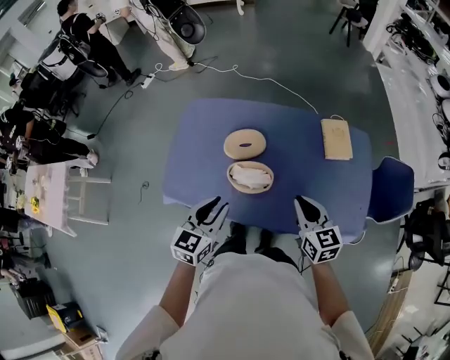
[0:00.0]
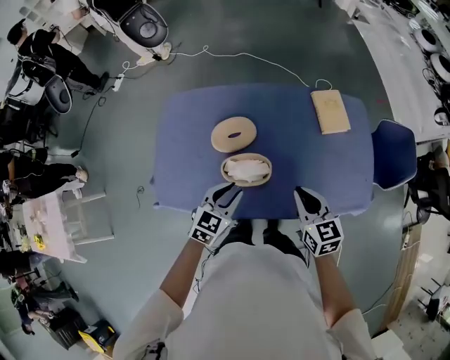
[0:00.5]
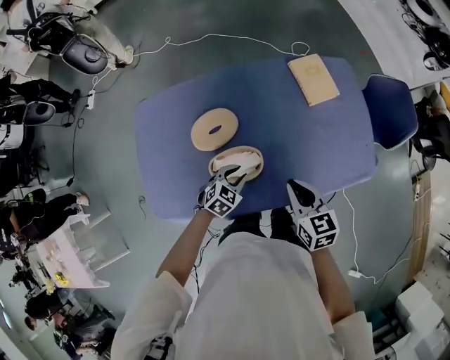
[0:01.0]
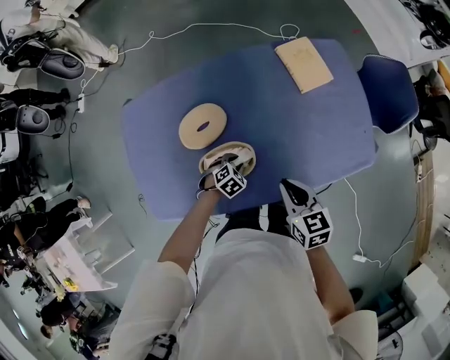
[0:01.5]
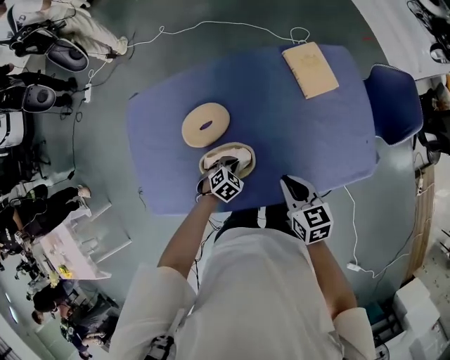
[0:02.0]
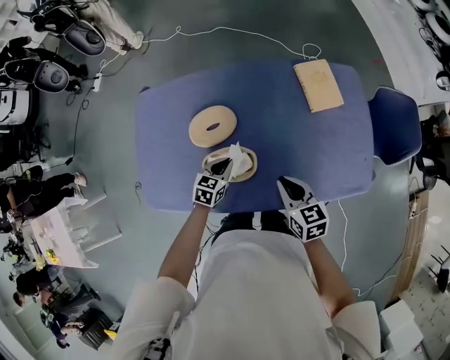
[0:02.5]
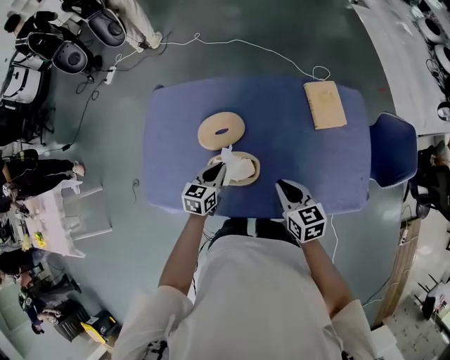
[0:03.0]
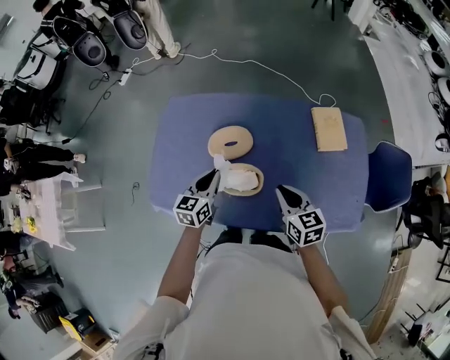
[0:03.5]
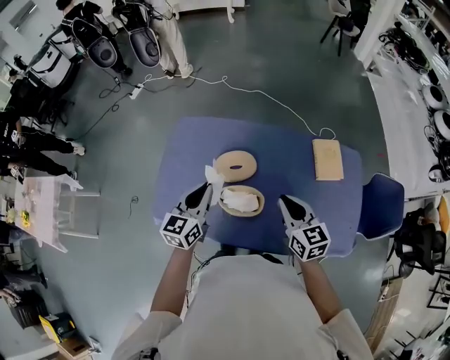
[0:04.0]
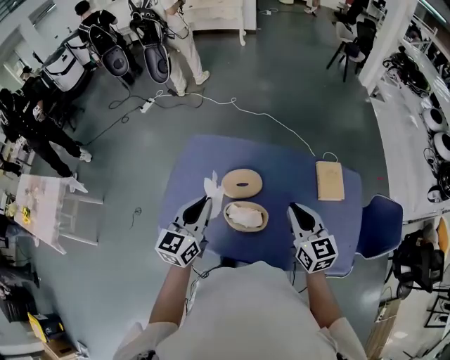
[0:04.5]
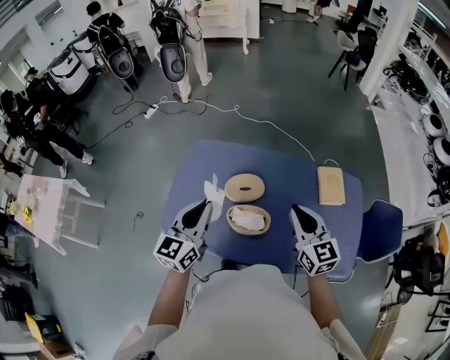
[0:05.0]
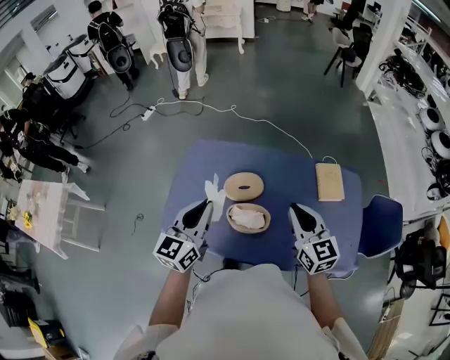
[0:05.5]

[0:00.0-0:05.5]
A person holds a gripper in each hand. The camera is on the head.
0:00.0 to 0:02.0: The left gripper is displaced downward by roughly 35 cm, tips its fingers downward by approximately 50 degrees, and closes; the right gripper is displaced downward by some 15 cm, and changes its angle by approximately 20 degrees.
0:02.0 to 0:03.5: The right gripper moves upward and to the left, approximately 10 cm, while the left gripper is displaced upward and to the left by roughly 25 cm, and angles its fingers upward, by roughly 40 degrees.
0:03.5 to 0:05.5: The grippers both shift upward by roughly 20 cm. The left gripper swivels approximately 20 degrees. Meanwhile the right gripper rotates some 20 degrees.

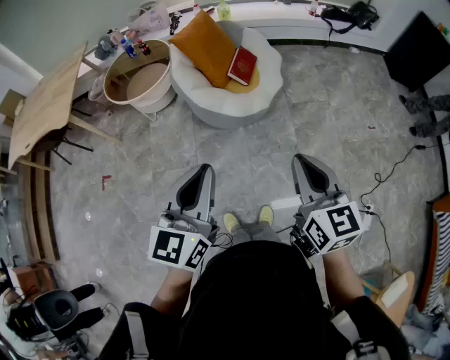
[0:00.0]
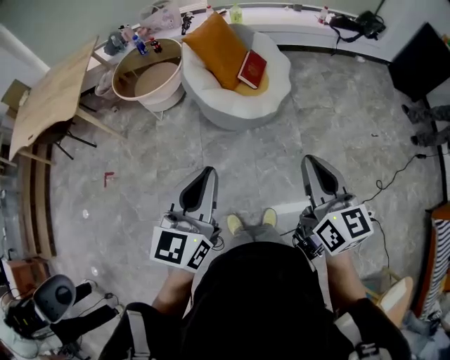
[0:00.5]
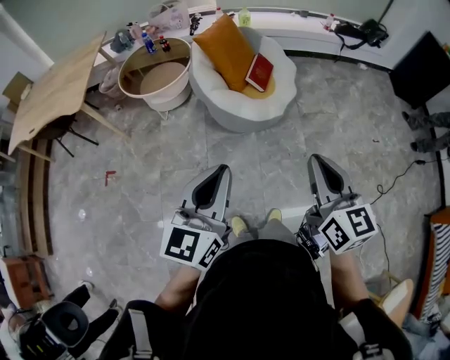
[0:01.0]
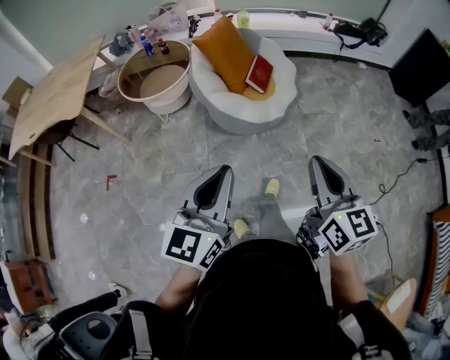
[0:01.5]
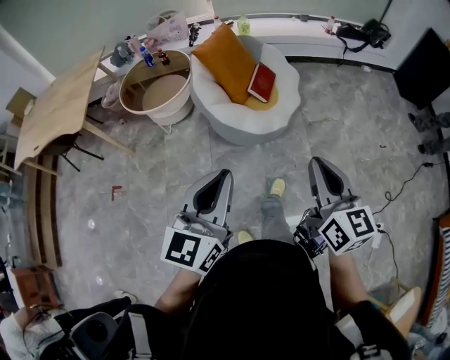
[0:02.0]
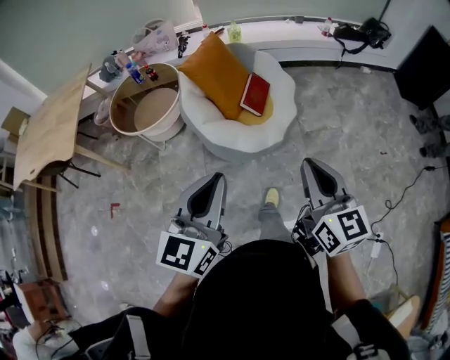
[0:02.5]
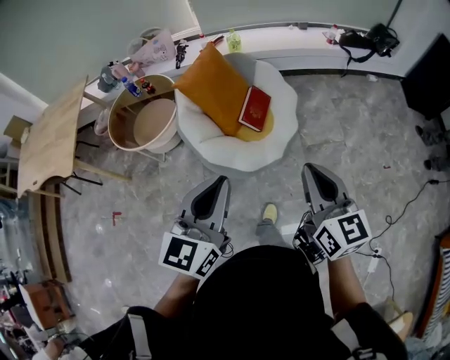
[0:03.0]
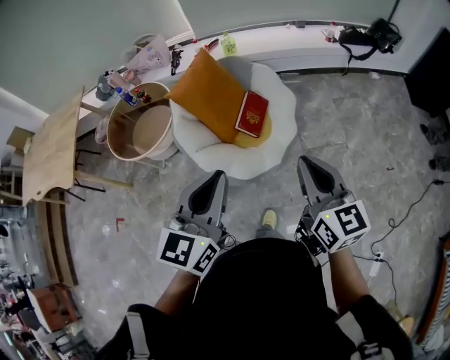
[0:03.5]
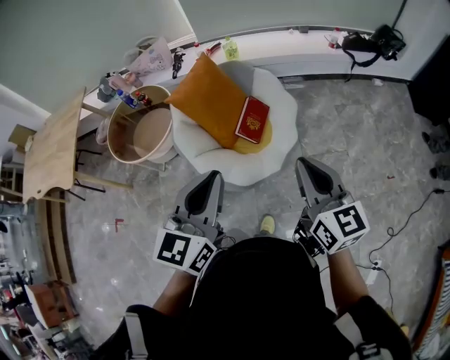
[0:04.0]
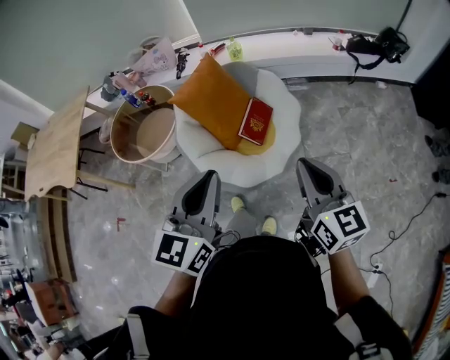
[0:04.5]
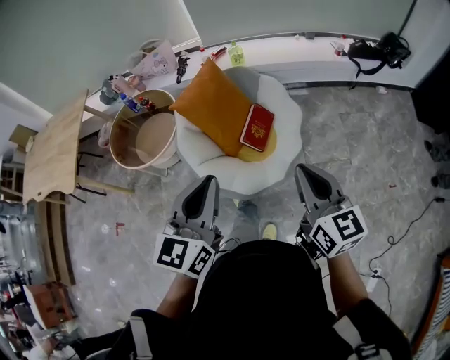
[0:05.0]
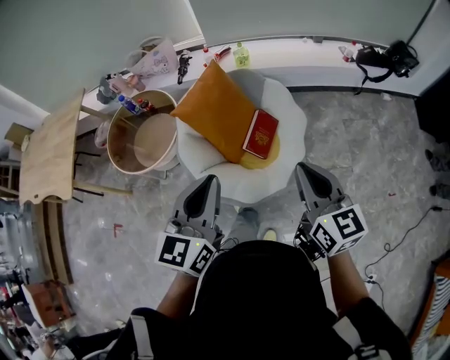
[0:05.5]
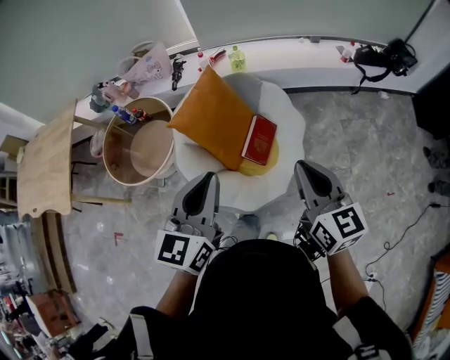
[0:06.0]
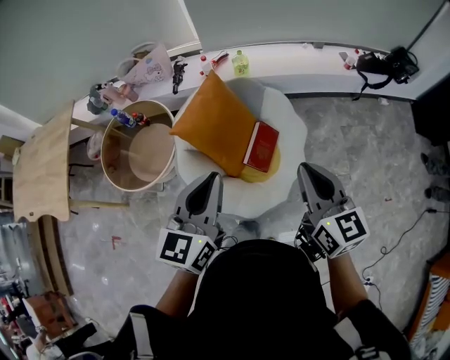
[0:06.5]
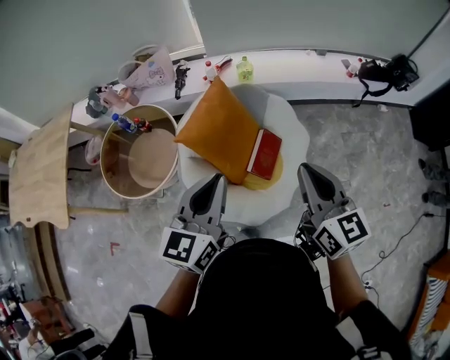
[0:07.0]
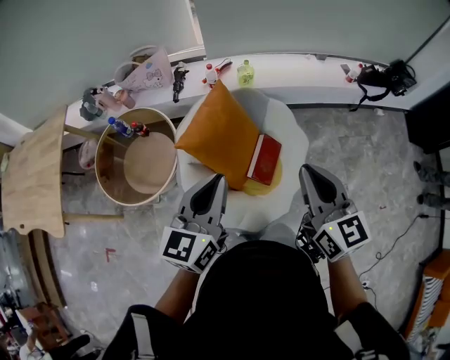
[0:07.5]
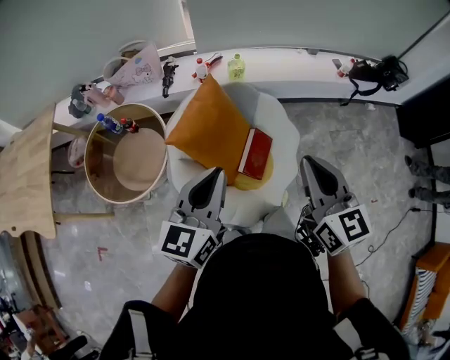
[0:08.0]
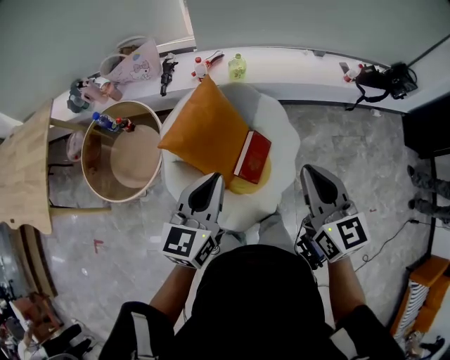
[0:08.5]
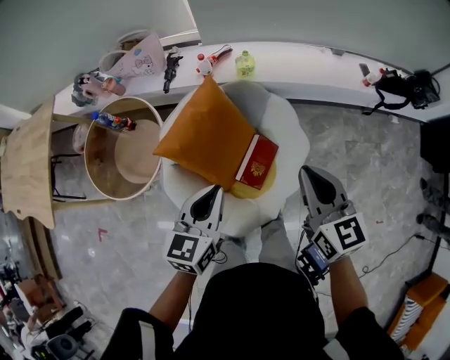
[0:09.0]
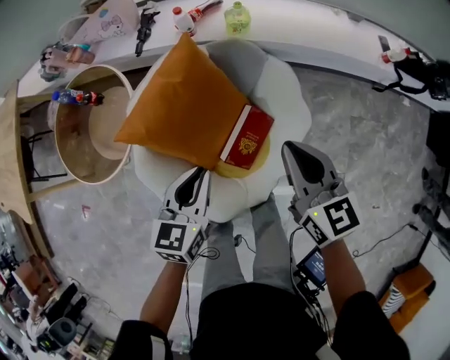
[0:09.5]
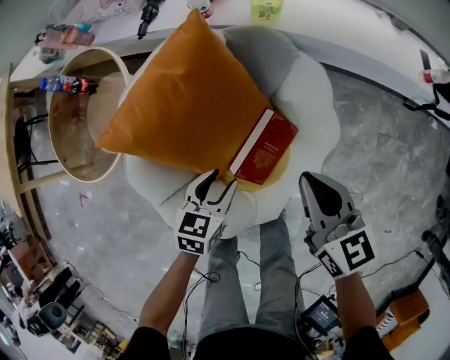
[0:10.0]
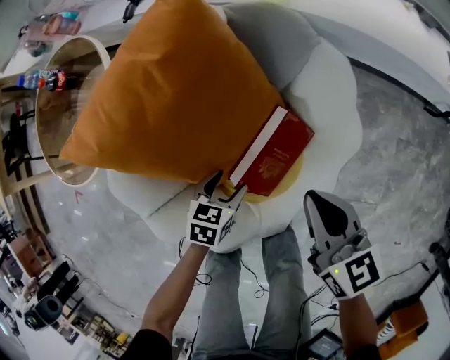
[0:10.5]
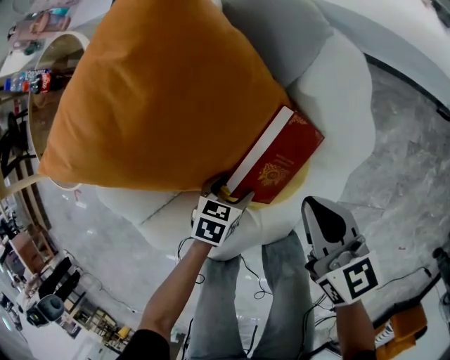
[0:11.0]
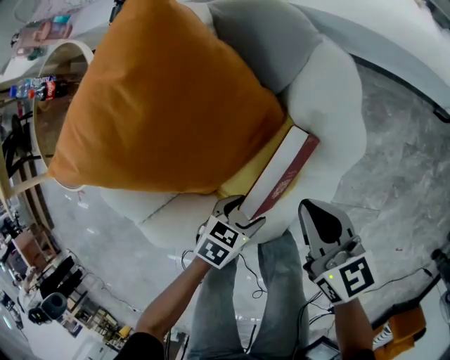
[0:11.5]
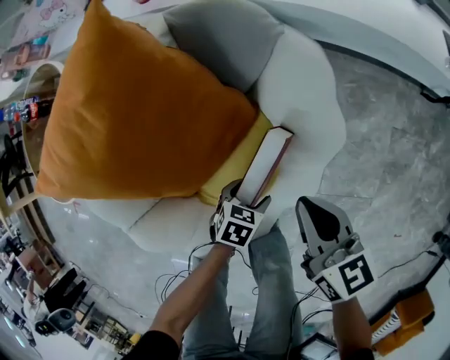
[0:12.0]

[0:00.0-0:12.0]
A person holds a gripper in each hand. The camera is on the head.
0:00.0 to 0:02.0: The grippers both shift to the left by approximately 5 cm.
0:02.0 to 0:04.0: The left gripper moves forward and to the right, about 40 cm, while the right gripper heads forward, covering roughly 35 cm.
0:04.0 to 0:06.0: Both grippers move forward, about 20 cm.
0:06.0 to 0:08.0: The two grippers go some 15 cm forward and to the left.
0:08.0 to 0:10.0: The right gripper heads downward and forward, covering approximately 40 cm, and changes its angle by some 30 degrees. Meanwhile the left gripper shifts some 50 cm downward, angles its fingers downward, by roughly 40 degrees, and opens up.
0:10.0 to 0:12.0: The right gripper heads downward and to the right, covering some 15 cm, while the left gripper goes up and down, some 25 cm each way, reversing 2 times, rotates some 30 degrees, and opens up.

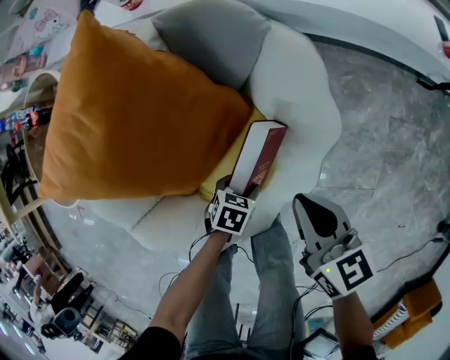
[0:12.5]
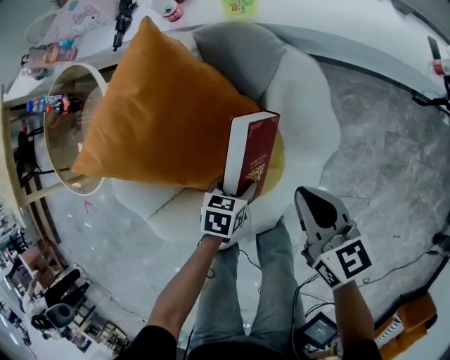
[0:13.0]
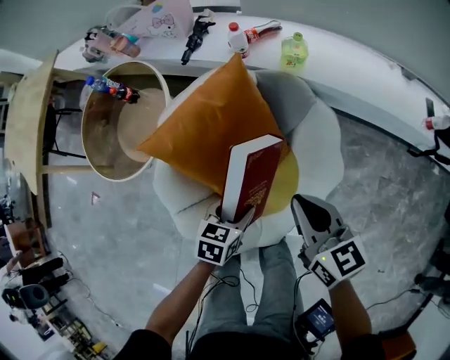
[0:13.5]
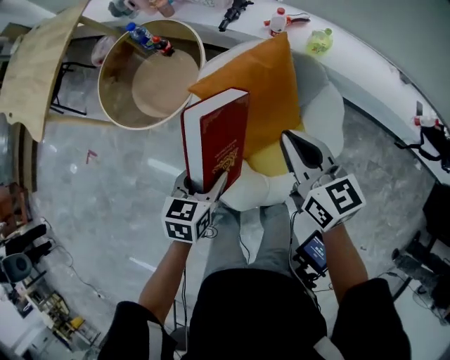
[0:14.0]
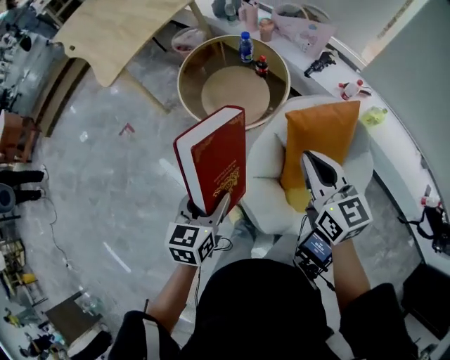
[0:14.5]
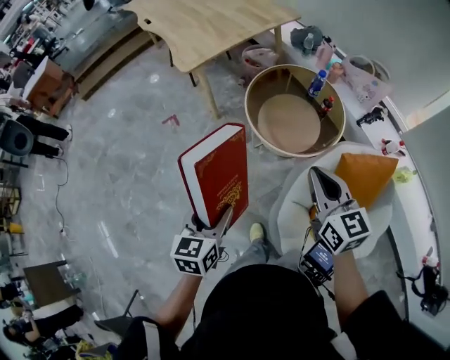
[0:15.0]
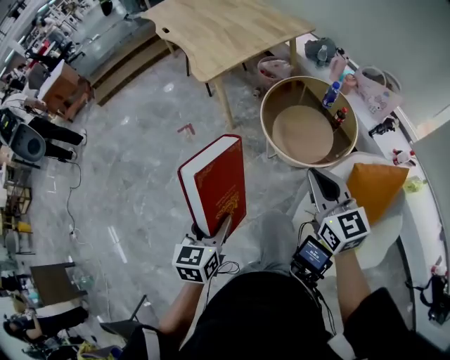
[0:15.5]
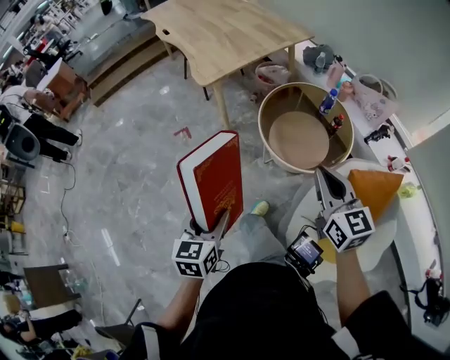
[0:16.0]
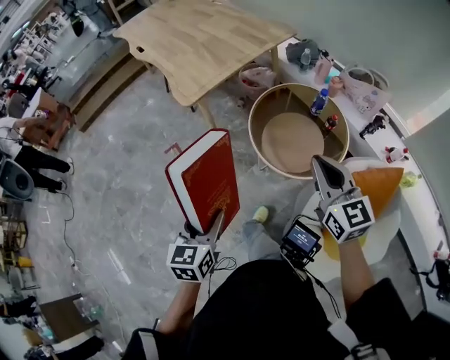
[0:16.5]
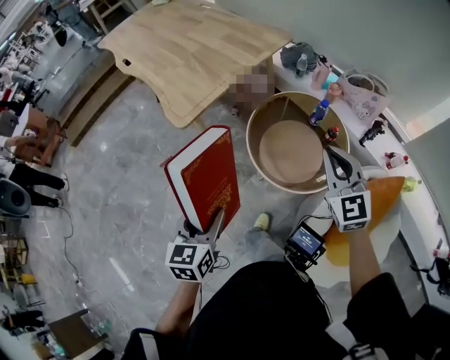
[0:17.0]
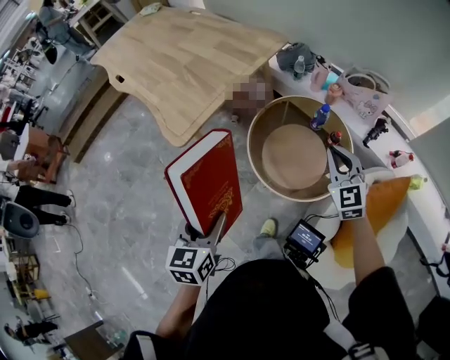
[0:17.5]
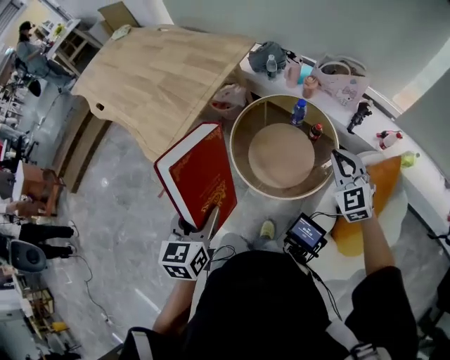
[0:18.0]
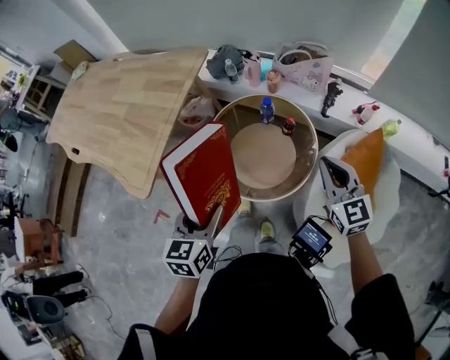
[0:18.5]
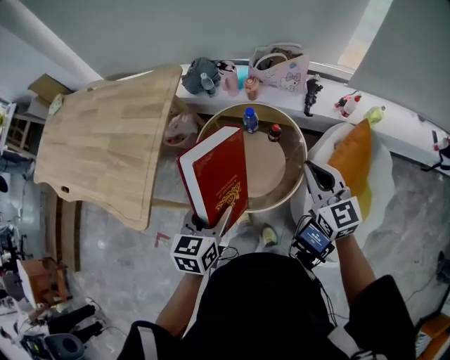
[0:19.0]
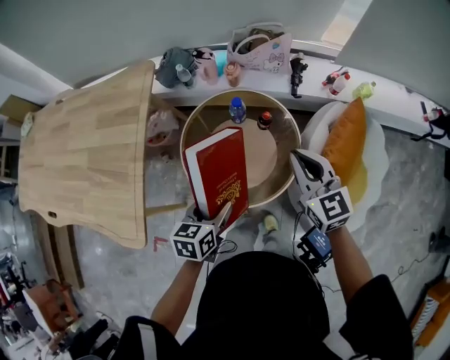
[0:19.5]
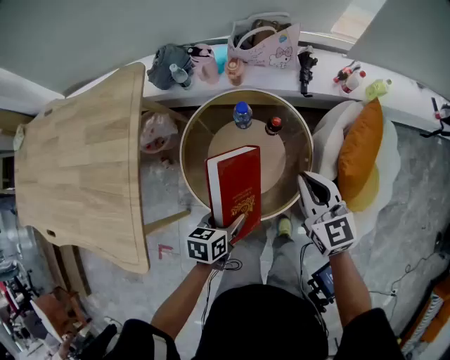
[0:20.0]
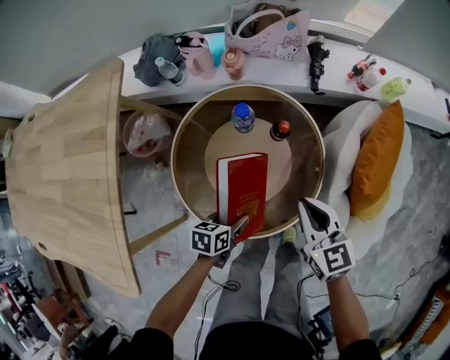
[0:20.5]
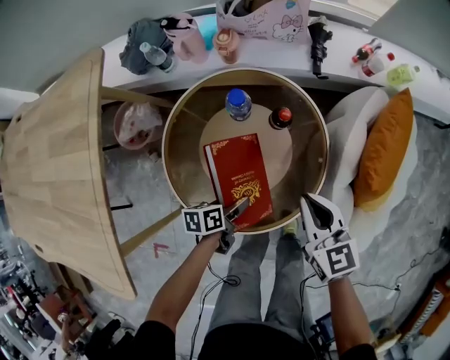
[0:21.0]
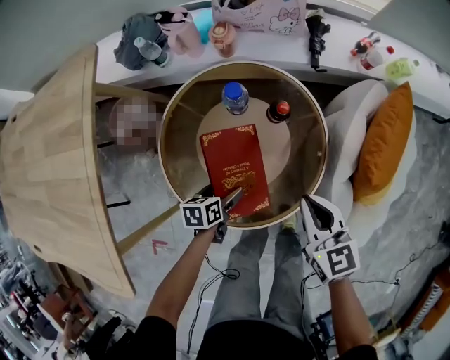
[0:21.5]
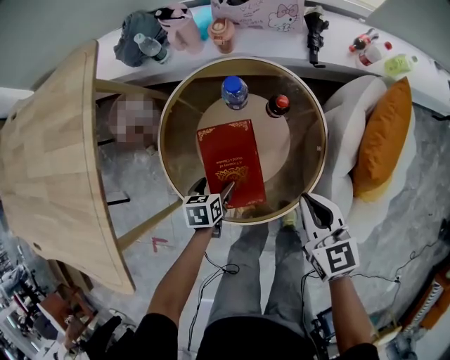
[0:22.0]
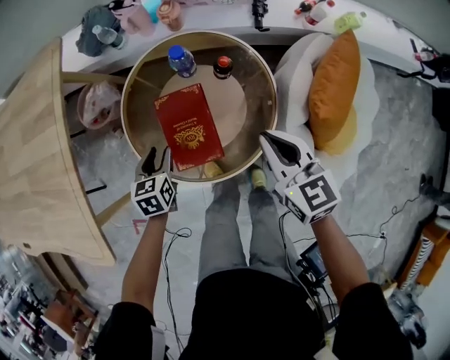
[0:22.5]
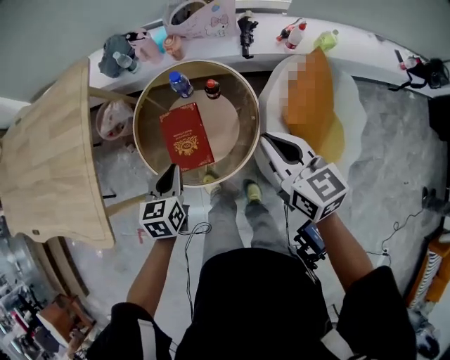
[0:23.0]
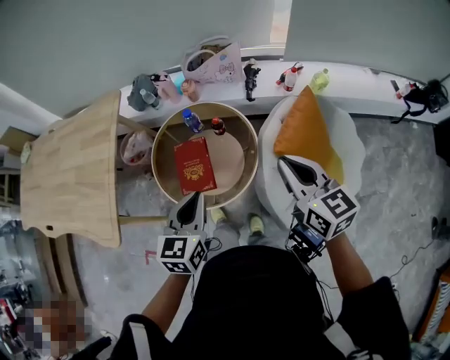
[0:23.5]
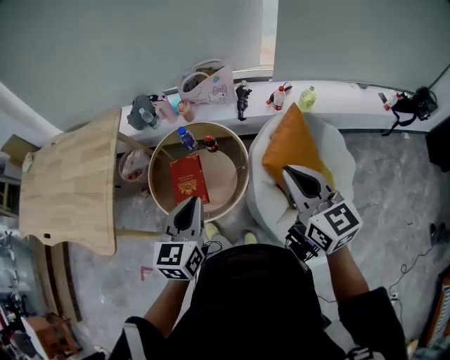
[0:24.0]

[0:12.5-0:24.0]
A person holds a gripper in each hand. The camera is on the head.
0:12.5 to 0:14.5: The pair of grippers is taken some 50 cm. The left gripper is displaced upward by some 50 cm, and points its fingers roughly 30 degrees further upward. The right gripper swivels roughly 40 degrees.
0:14.5 to 0:16.5: The two grippers go some 30 cm to the left and forward.
0:16.5 to 0:18.5: The right gripper moves some 20 cm, and rotates about 30 degrees; the left gripper ends up approximately 30 cm from where it was, and swivels roughly 30 degrees.
0:18.5 to 0:20.0: The right gripper goes approximately 10 cm downward, and swivels about 20 degrees. The left gripper travels downward by some 25 cm, and turns by about 40 degrees.
0:20.0 to 0:22.0: Both grippers travel together downward, approximately 20 cm. The left gripper opens its fingers.
0:22.0 to 0:24.0: The right gripper heads upward and to the right, covering about 40 cm, and swivels roughly 30 degrees. The left gripper shifts about 50 cm upward, angles its fingers upward, by about 40 degrees, and closes.
